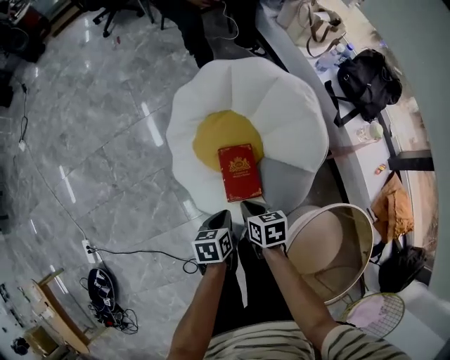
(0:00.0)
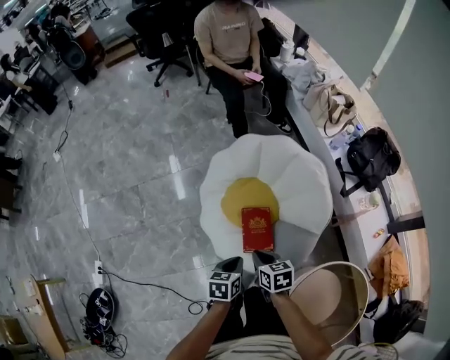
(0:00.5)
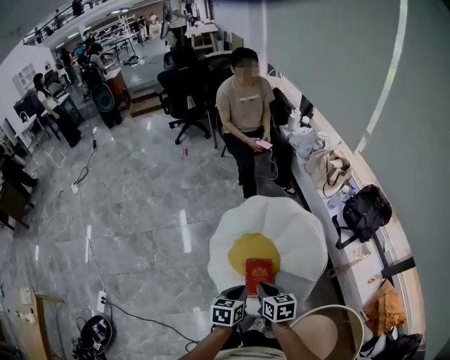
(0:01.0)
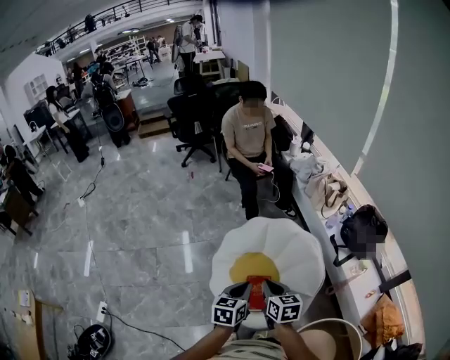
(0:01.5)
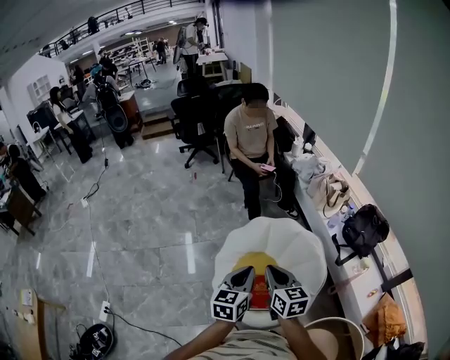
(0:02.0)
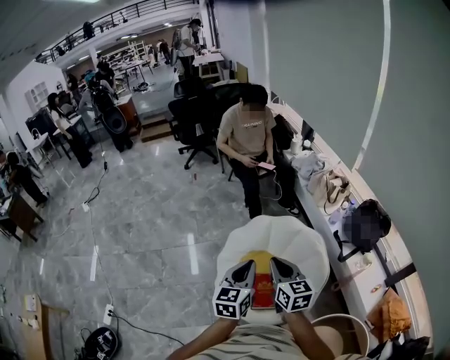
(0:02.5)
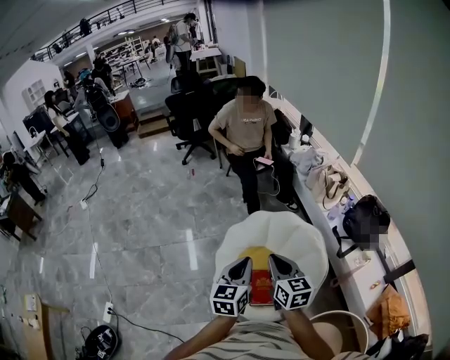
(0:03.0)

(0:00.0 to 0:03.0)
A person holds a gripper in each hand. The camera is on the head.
0:00.0 - 0:01.5: Both grippers travel together upward, some 35 cm. The right gripper rotates some 30 degrees; the left gripper changes its angle by roughly 30 degrees.
0:01.5 - 0:03.0: Both grippers move upward, about 10 cm.

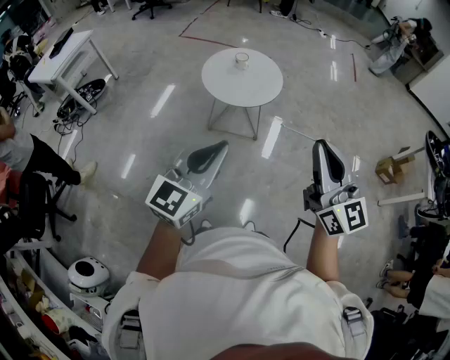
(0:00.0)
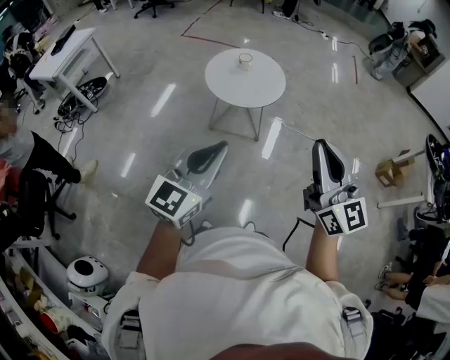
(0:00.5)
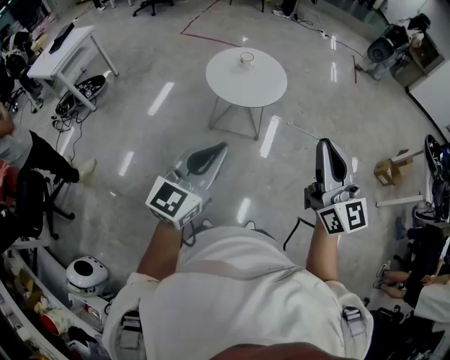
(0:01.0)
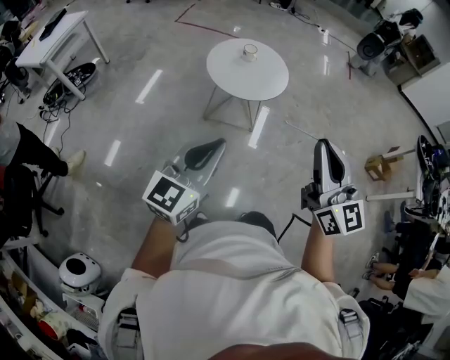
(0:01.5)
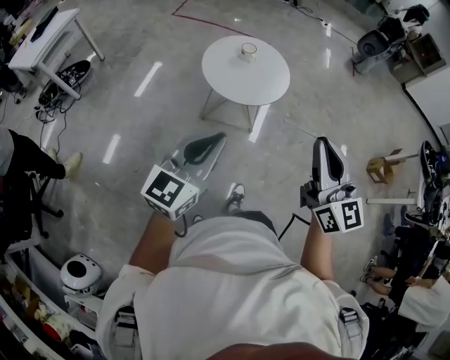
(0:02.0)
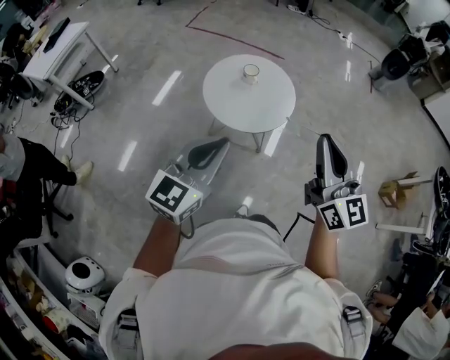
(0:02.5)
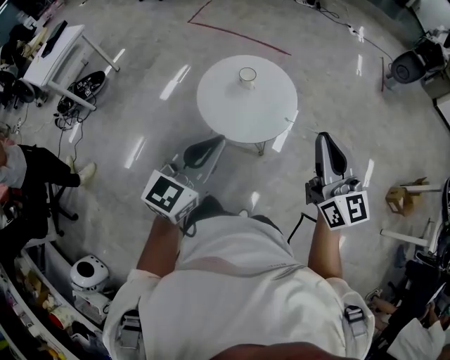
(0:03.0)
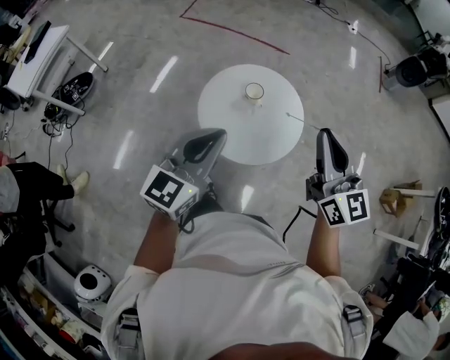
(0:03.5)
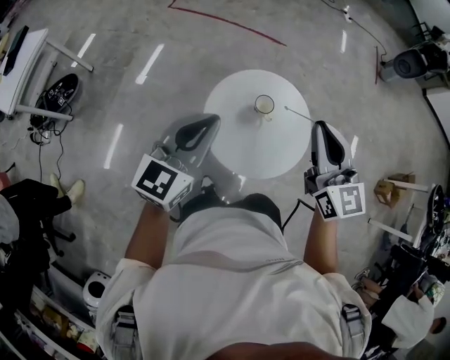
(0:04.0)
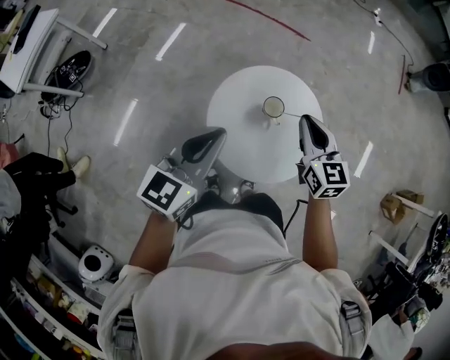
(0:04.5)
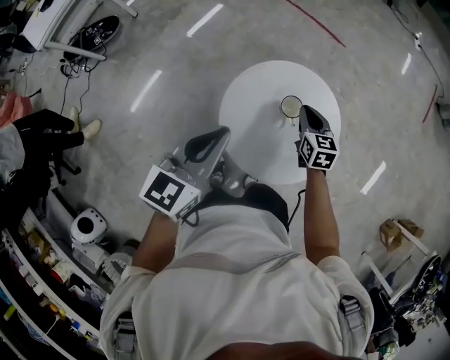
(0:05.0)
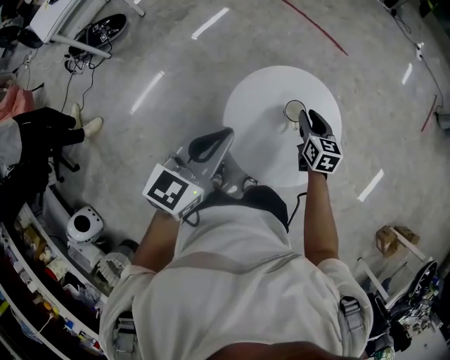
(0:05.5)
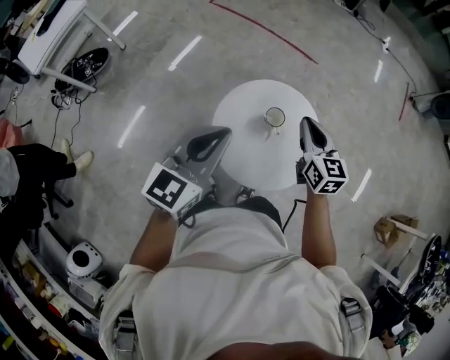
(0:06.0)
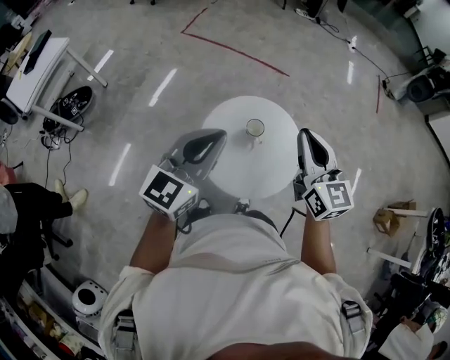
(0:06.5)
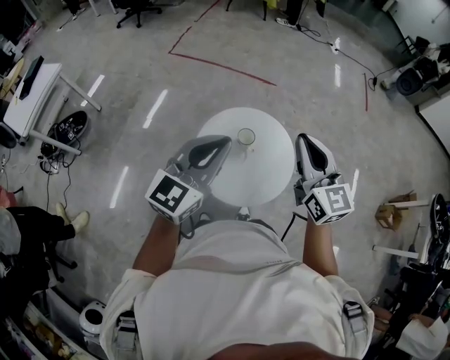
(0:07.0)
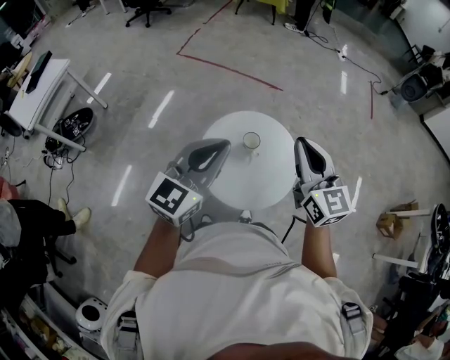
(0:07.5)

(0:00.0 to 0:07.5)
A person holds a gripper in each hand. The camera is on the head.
0:00.0 - 0:02.0: Both grippers travel together forward and to the left, about 15 cm.
0:02.0 - 0:04.0: The two grippers travel together, forward, approximately 60 cm.
0:04.0 - 0:05.5: The left gripper shifts approximately 5 cm downward, and changes its angle by approximately 20 degrees, while the right gripper shifts roughly 35 cm downward and forward, turns by about 30 degrees, and opens up.
0:05.5 - 0:07.5: The left gripper travels upward and to the right by some 15 cm, and rotates about 30 degrees. Meanwhile the right gripper travels upward and backward by about 40 cm, tips its fingers upward by approximately 30 degrees, and closes.

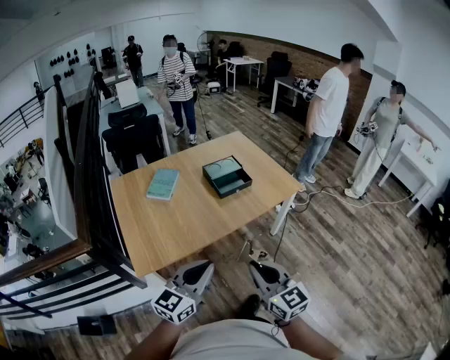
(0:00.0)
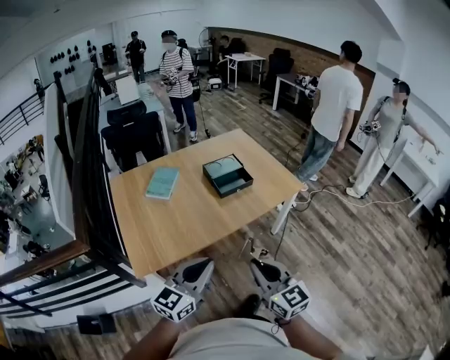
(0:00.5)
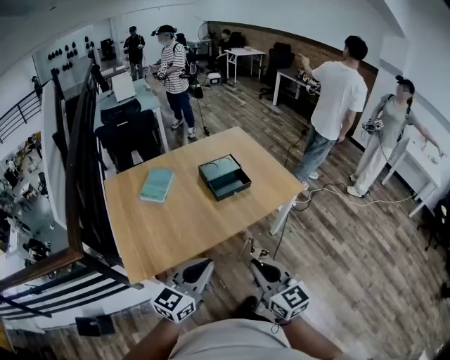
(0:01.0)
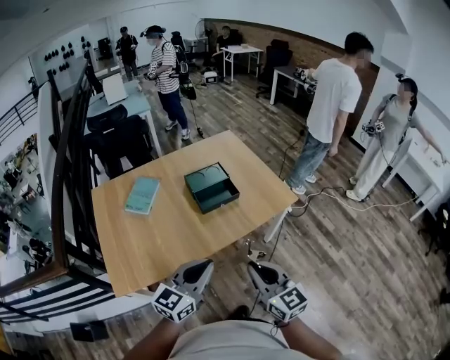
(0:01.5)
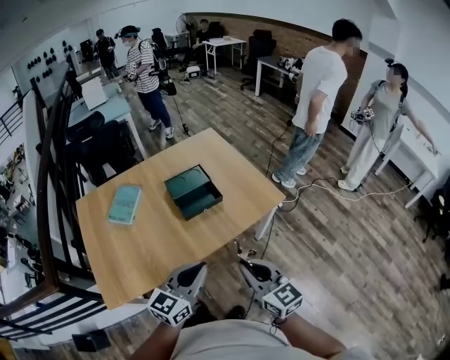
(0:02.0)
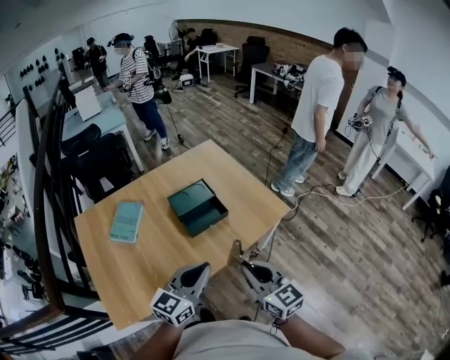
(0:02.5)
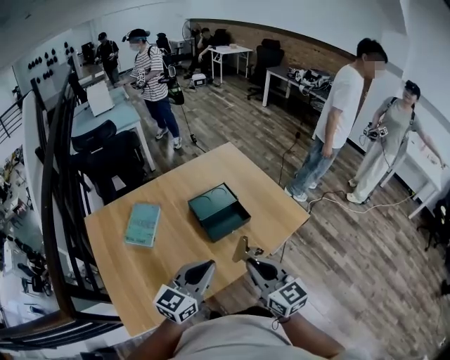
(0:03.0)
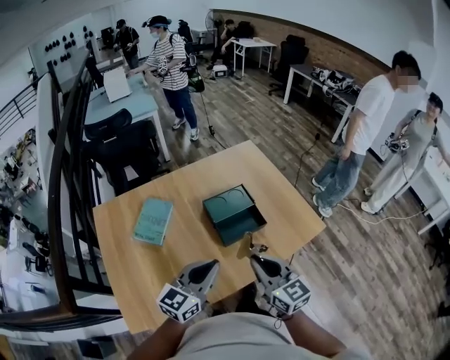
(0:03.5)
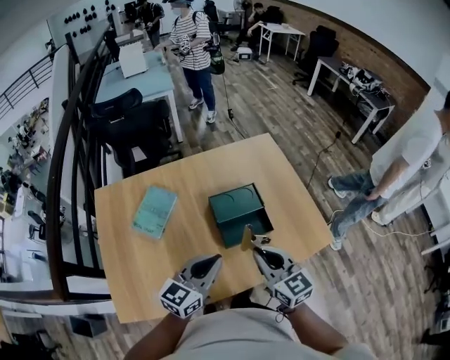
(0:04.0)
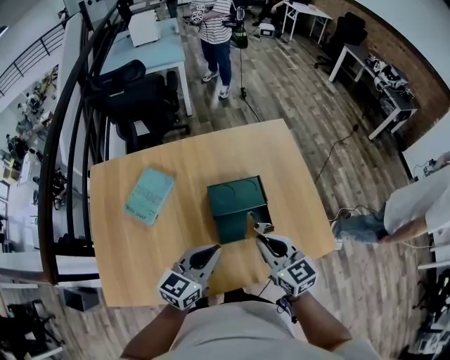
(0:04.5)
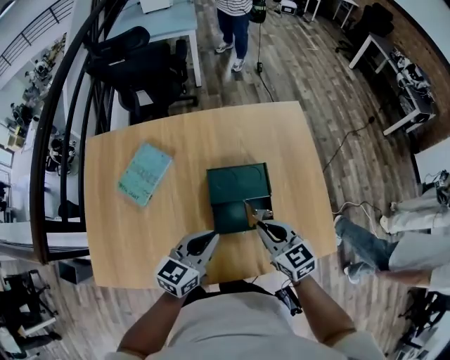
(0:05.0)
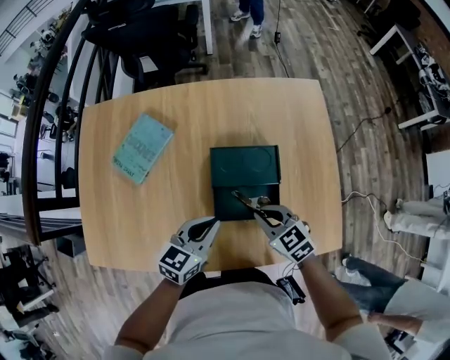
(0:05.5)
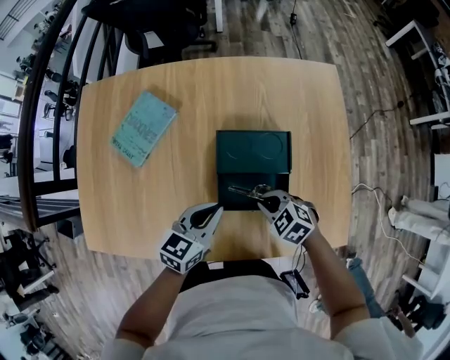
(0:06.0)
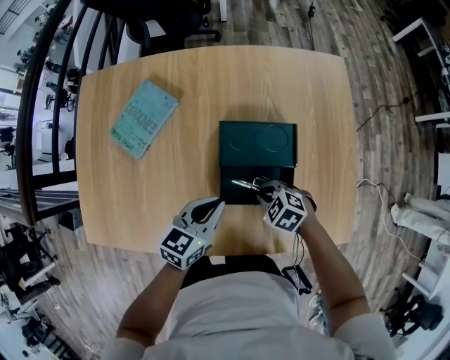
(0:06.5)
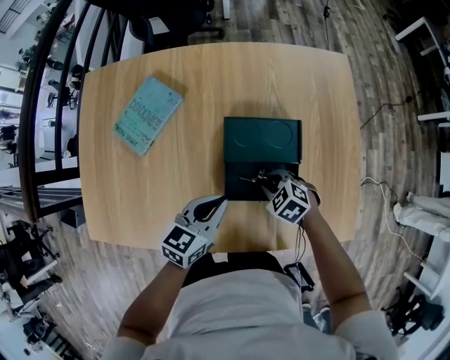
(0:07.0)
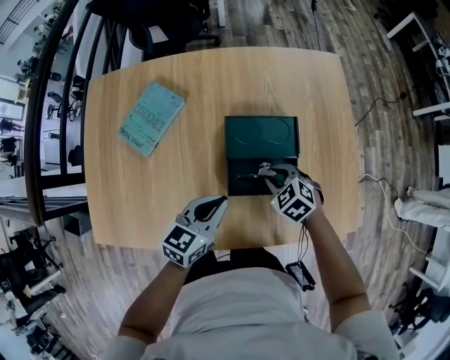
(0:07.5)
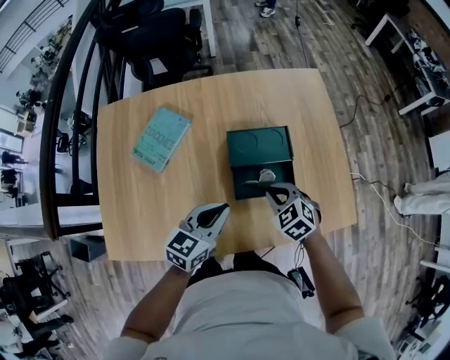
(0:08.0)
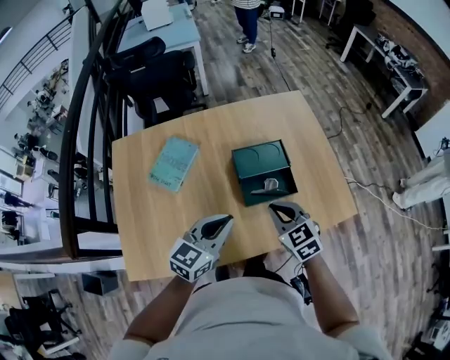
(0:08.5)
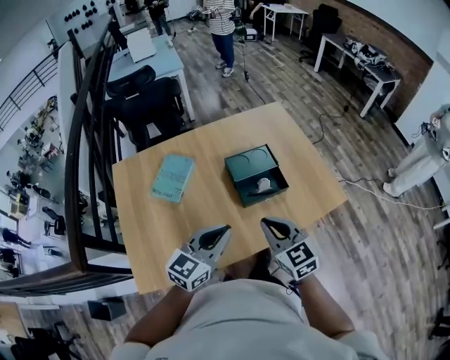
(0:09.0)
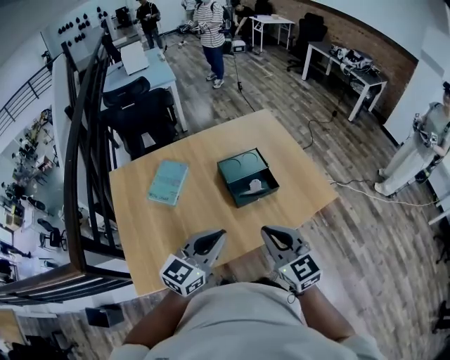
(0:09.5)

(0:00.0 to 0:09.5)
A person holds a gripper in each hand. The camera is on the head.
0:00.0 - 0:02.0: The two grippers go approximately 25 cm forward and to the right.
0:02.0 - 0:04.0: Both grippers move forward and to the left, approximately 30 cm.
0:04.0 - 0:05.5: Both grippers move downward and forward, about 20 cm. The right gripper swivels about 40 degrees. The left gripper swivels some 20 degrees.
0:05.5 - 0:07.5: The right gripper travels downward by some 10 cm, changes its angle by roughly 20 degrees, and opens.
0:07.5 - 0:09.5: The left gripper changes place by about 30 cm, and swivels roughly 30 degrees; the right gripper travels upward by some 30 cm, points its fingers about 50 degrees further upward, and closes up.

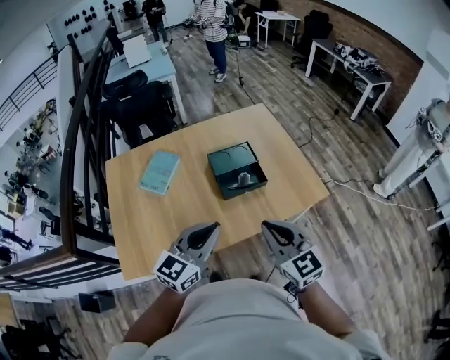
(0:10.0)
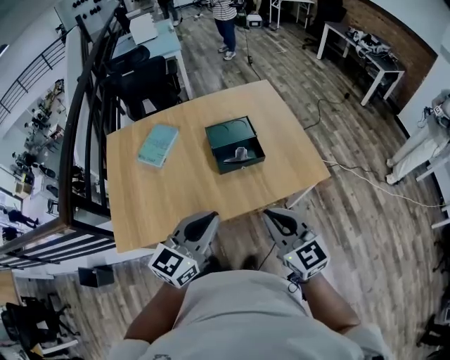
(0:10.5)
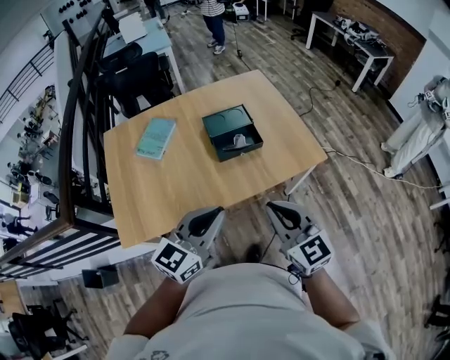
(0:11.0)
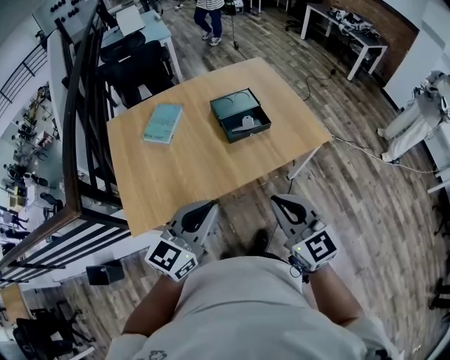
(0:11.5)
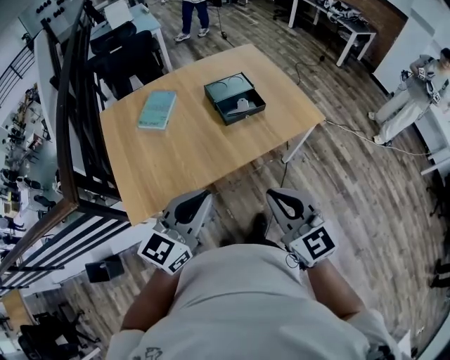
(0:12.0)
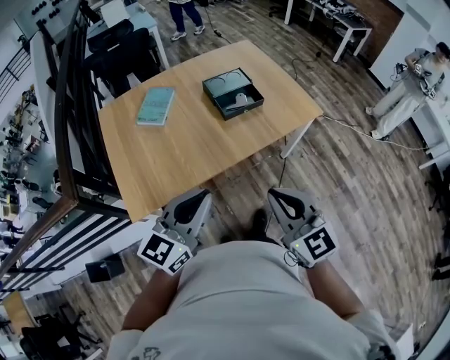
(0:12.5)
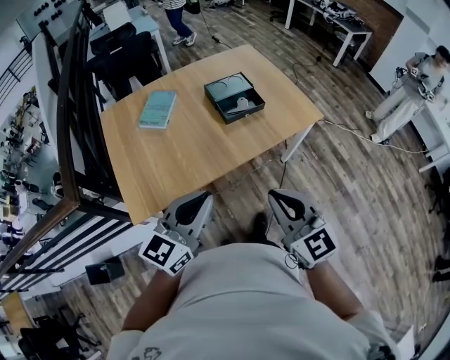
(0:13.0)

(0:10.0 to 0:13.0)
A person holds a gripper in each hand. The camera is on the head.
0:10.0 - 0:11.5: Both grippers travel together backward, roughly 15 cm.
0:11.5 - 0:13.0: The two grippers go roughly 5 cm backward.

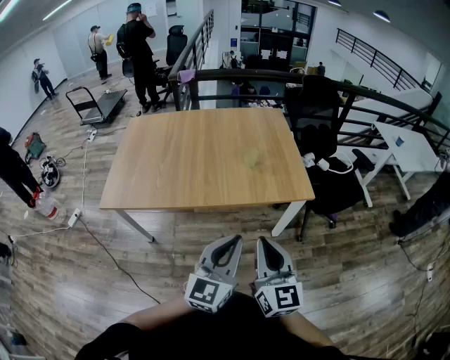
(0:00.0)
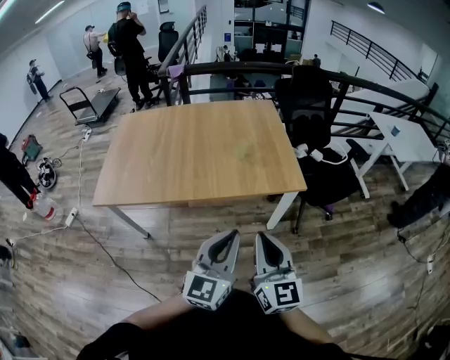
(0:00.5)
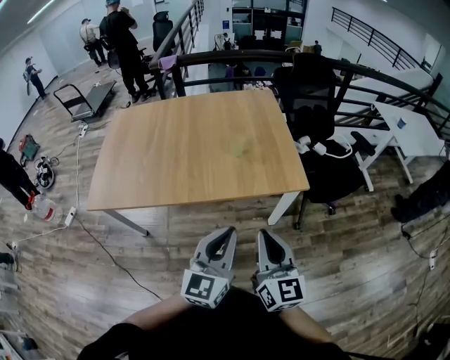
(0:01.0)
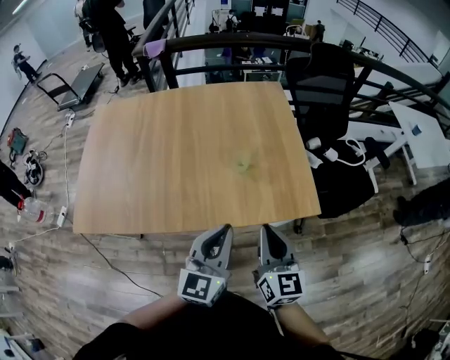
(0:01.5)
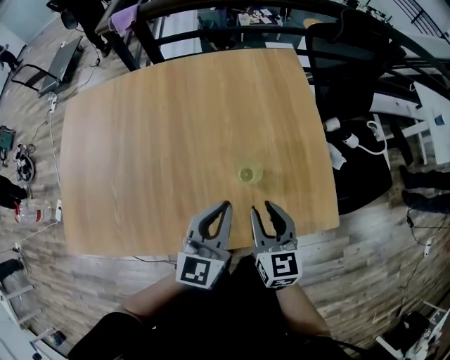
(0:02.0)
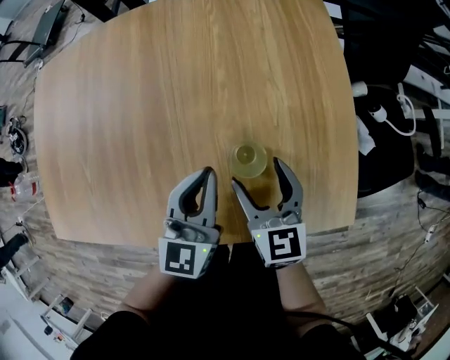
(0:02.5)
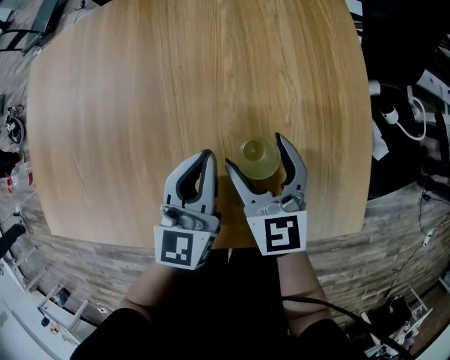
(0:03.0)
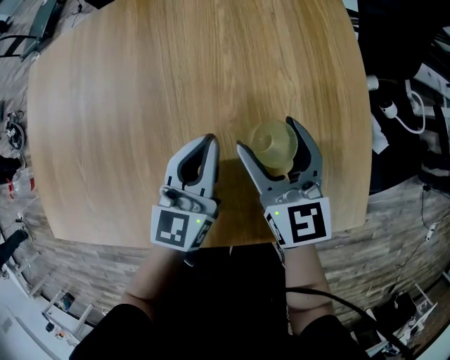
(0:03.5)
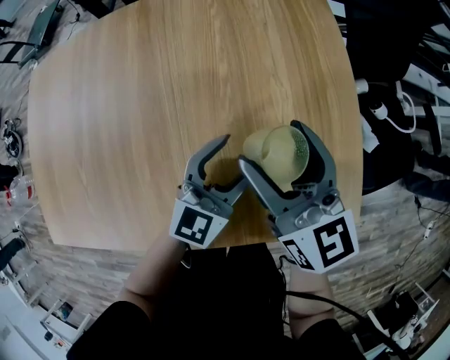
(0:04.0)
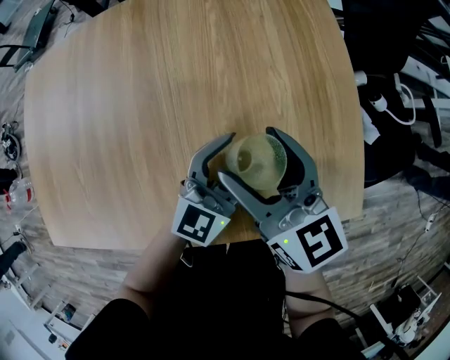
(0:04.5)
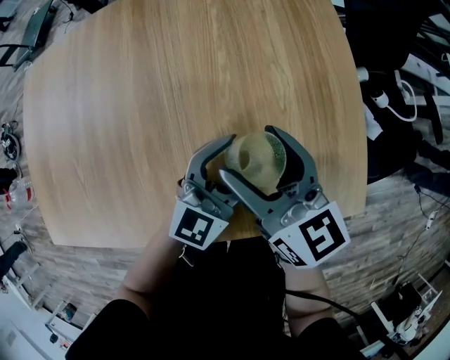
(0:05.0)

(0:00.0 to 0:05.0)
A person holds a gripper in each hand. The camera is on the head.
0:00.0 - 0:02.5: The two grippers travel together, forward, roughly 50 cm. Both grippers move downward, some 30 cm. The right gripper changes its angle by some 30 degrees, and opens its fingers.
0:02.5 - 0:05.0: The left gripper goes approximately 5 cm to the right, swivels about 30 degrees, and opens up, while the right gripper shifts some 5 cm upward.
